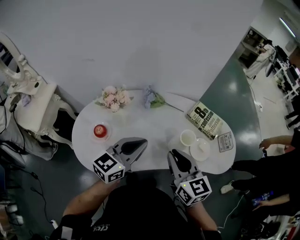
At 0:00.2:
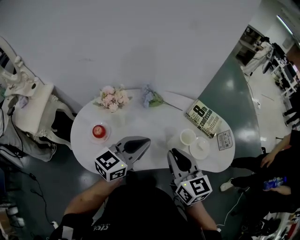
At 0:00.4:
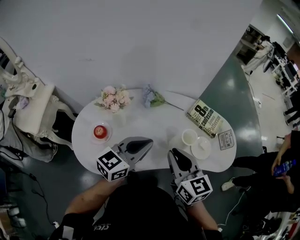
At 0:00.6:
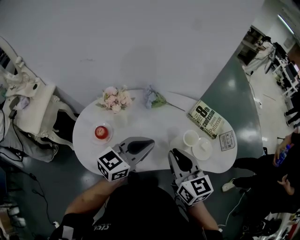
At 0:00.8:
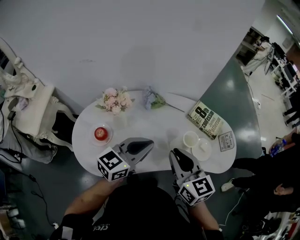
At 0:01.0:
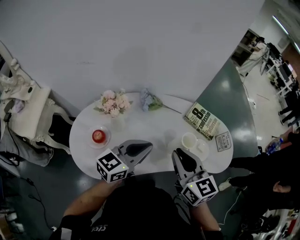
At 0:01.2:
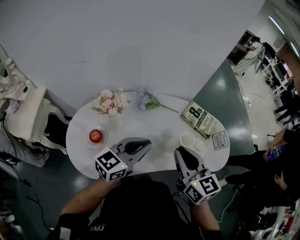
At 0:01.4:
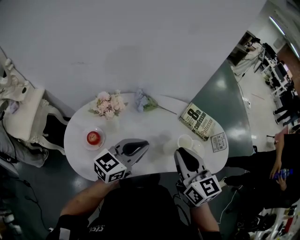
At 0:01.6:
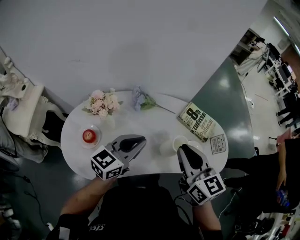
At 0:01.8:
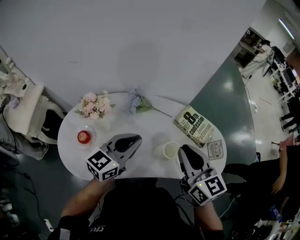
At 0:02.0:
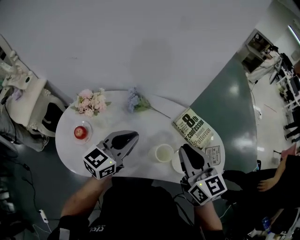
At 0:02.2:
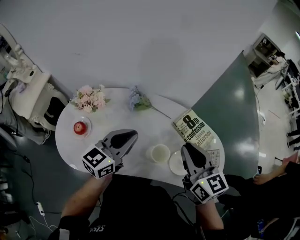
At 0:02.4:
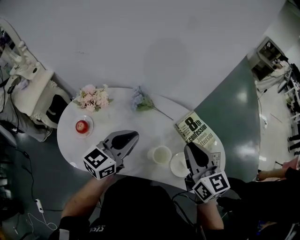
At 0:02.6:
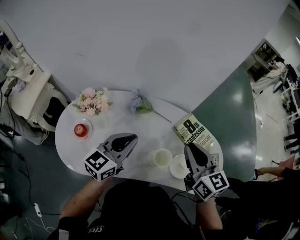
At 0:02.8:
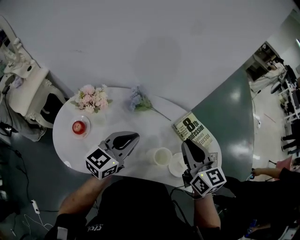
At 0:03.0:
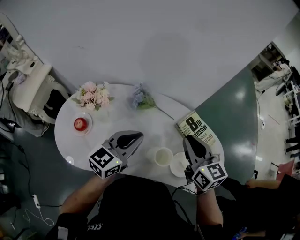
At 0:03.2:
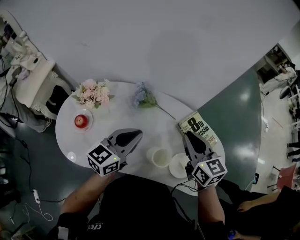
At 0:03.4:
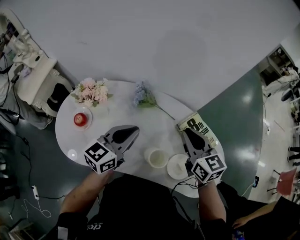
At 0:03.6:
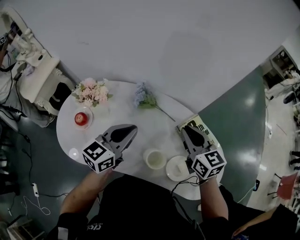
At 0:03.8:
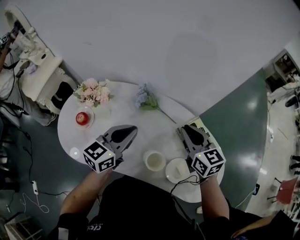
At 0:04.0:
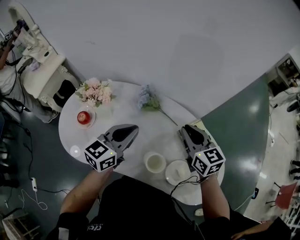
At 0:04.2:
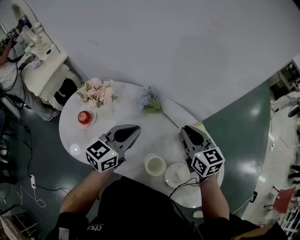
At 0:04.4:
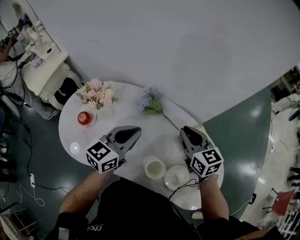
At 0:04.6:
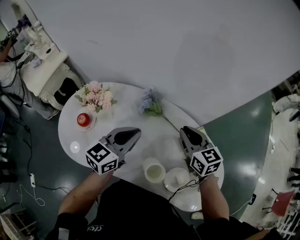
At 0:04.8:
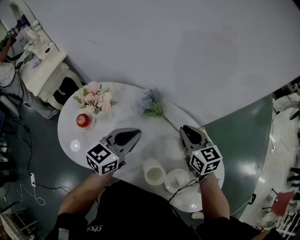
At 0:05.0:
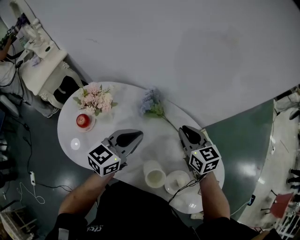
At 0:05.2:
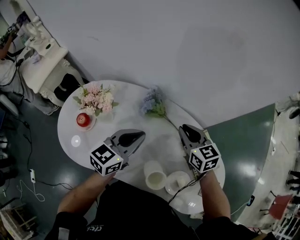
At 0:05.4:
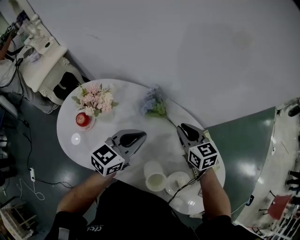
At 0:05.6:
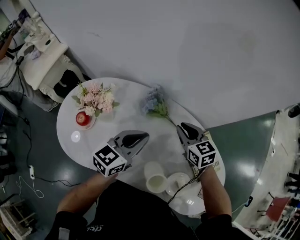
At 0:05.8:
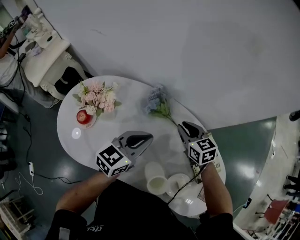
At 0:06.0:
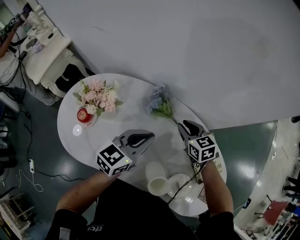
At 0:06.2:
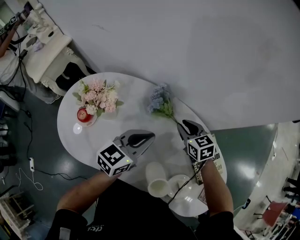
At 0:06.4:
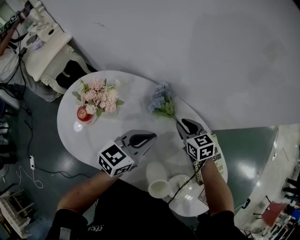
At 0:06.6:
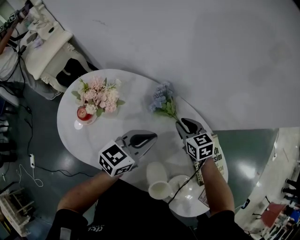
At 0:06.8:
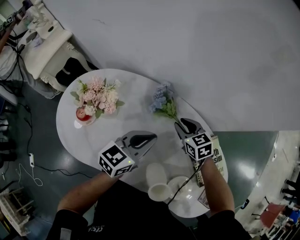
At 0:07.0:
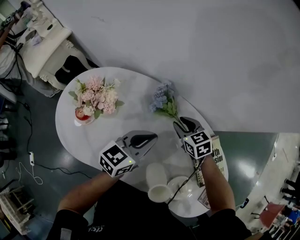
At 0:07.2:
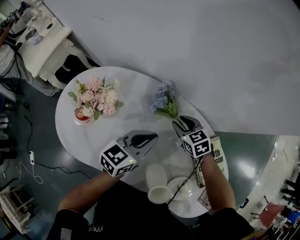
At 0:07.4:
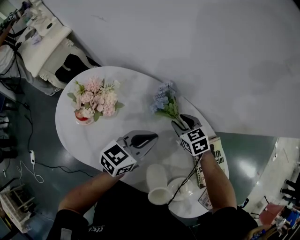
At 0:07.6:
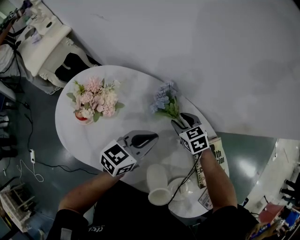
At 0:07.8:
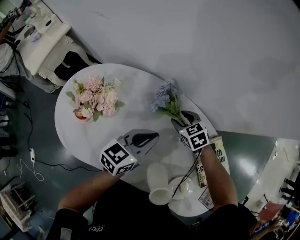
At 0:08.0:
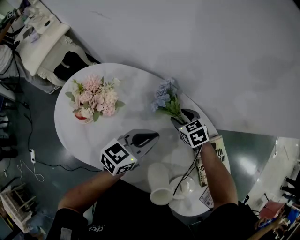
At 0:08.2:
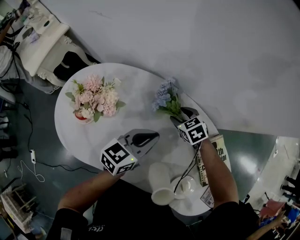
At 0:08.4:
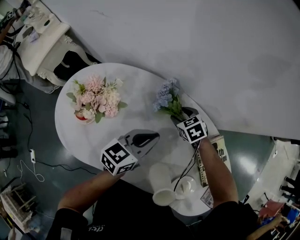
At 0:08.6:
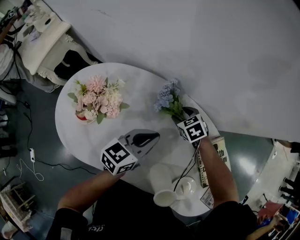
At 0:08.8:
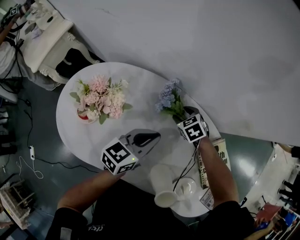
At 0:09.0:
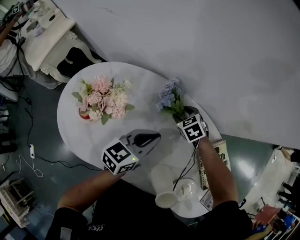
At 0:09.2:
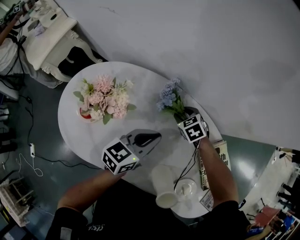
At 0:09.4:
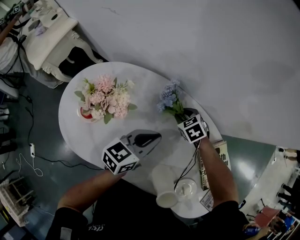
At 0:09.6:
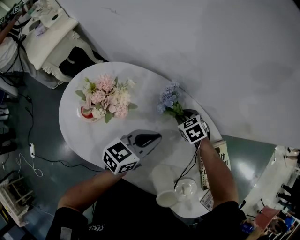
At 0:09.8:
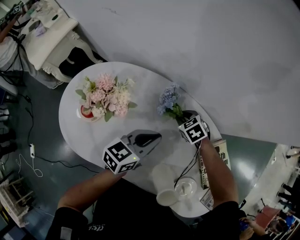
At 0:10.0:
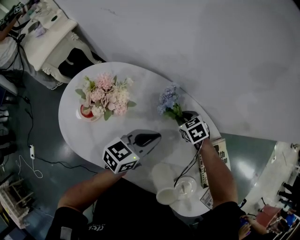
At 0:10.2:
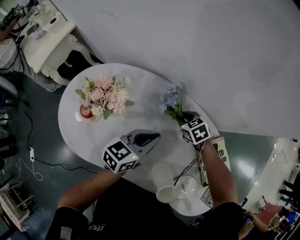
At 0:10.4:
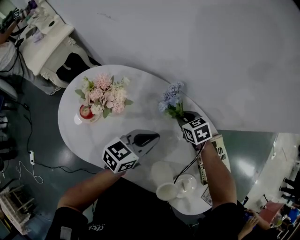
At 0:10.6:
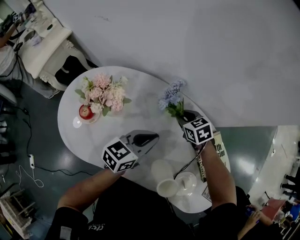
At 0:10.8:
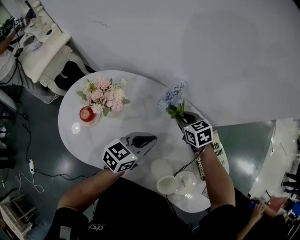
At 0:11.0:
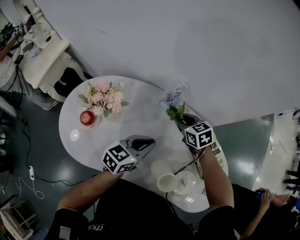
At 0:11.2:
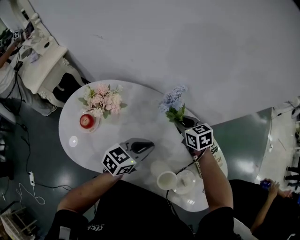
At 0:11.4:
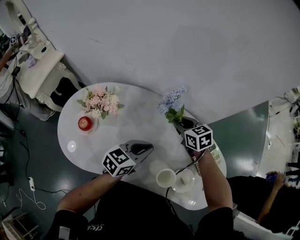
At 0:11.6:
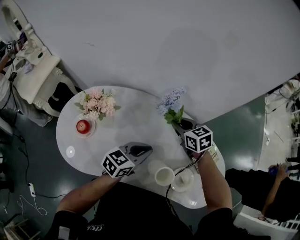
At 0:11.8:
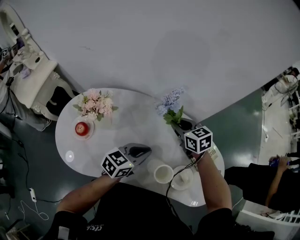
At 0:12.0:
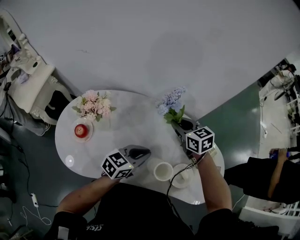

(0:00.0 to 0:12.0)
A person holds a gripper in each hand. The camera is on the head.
0:00.0 - 0:01.6: Both grippers move forward, some 5 cm.
0:01.6 - 0:03.0: The right gripper moves forward, to the right and downward, about 15 cm; the left gripper goes approximately 10 cm forward and to the right.
0:03.0 - 0:04.4: The right gripper goes about 10 cm forward and downward, while the left gripper goes about 5 cm forward.
0:04.4 - 0:06.0: The right gripper travels downward and forward by roughly 15 cm; the left gripper is displaced downward by roughly 5 cm.
0:06.0 - 0:07.6: The two grippers go approximately 10 cm downward.
0:07.6 - 0:09.0: The right gripper ends up about 5 cm from where it was.
0:09.0 - 0:10.4: The right gripper moves roughly 5 cm, and closes its fingers.
0:10.4 - 0:12.0: The right gripper heads upward and to the right, covering some 20 cm, and swivels approximately 30 degrees. Meanwhile the left gripper shifts roughly 10 cm backward, and rotates some 20 degrees.

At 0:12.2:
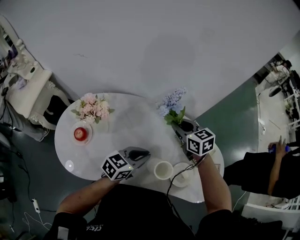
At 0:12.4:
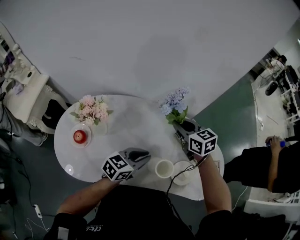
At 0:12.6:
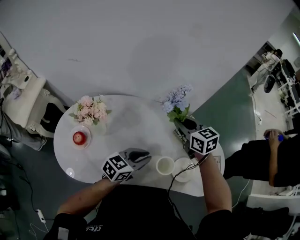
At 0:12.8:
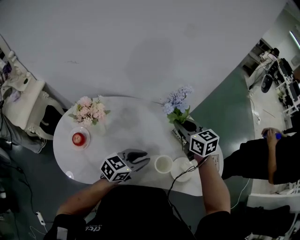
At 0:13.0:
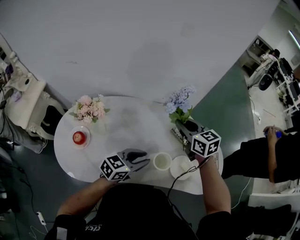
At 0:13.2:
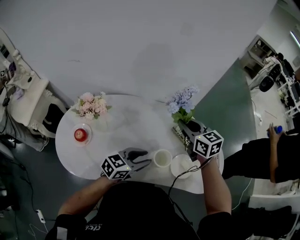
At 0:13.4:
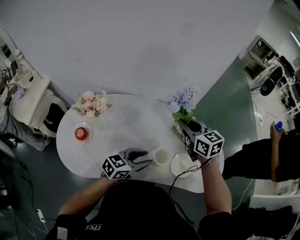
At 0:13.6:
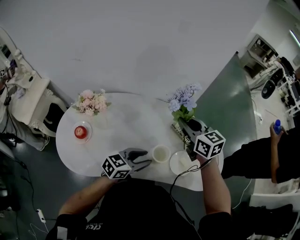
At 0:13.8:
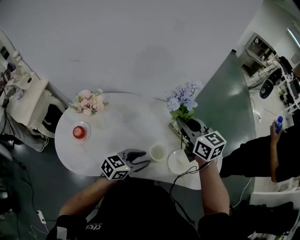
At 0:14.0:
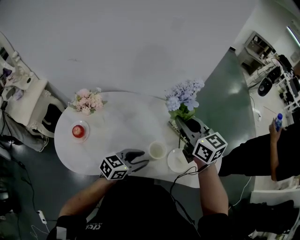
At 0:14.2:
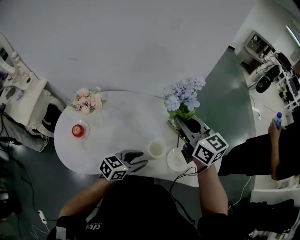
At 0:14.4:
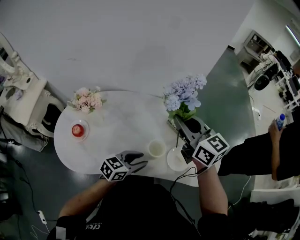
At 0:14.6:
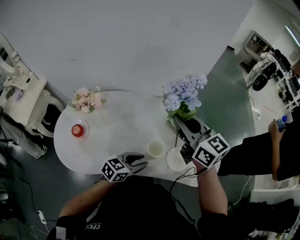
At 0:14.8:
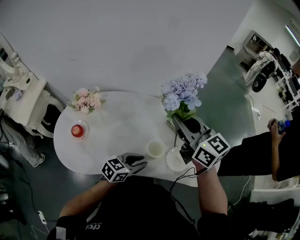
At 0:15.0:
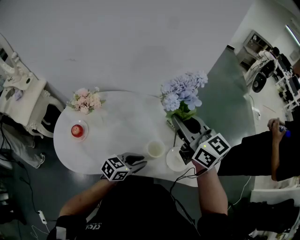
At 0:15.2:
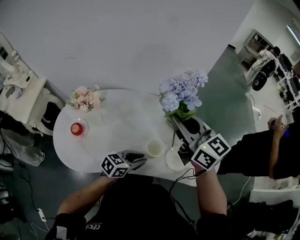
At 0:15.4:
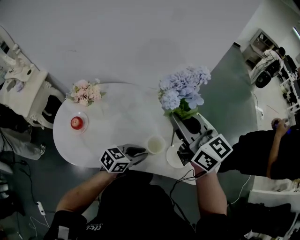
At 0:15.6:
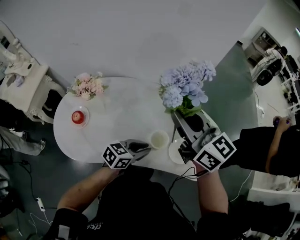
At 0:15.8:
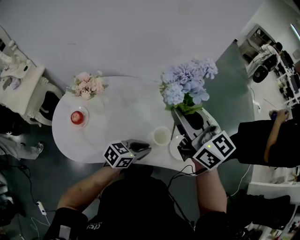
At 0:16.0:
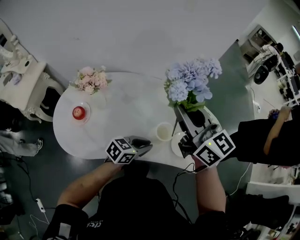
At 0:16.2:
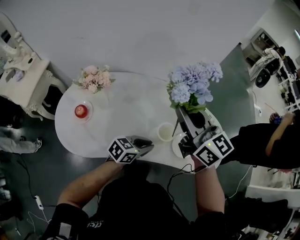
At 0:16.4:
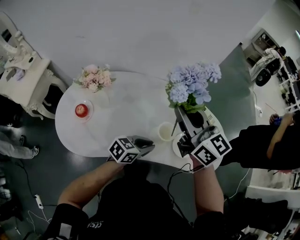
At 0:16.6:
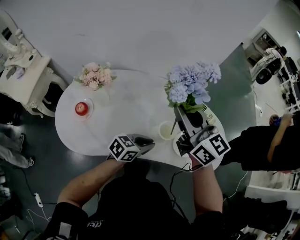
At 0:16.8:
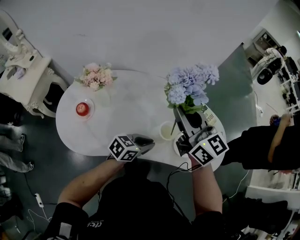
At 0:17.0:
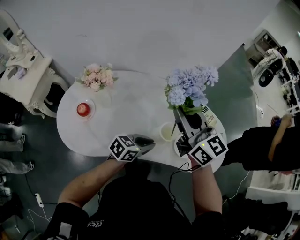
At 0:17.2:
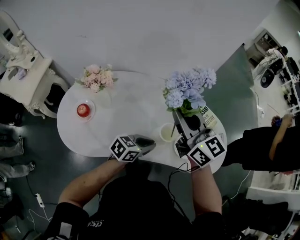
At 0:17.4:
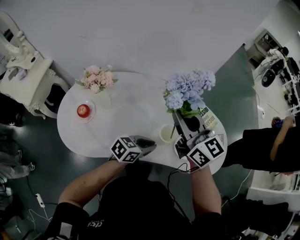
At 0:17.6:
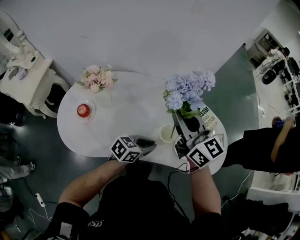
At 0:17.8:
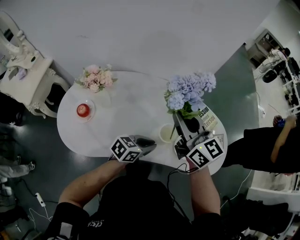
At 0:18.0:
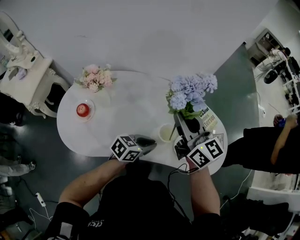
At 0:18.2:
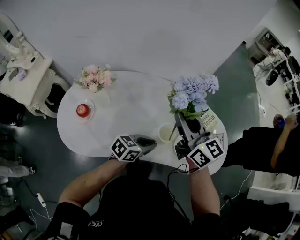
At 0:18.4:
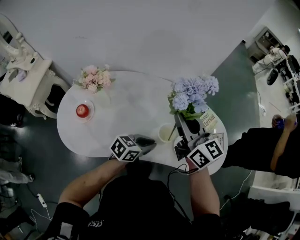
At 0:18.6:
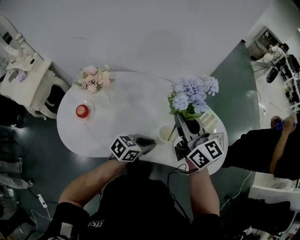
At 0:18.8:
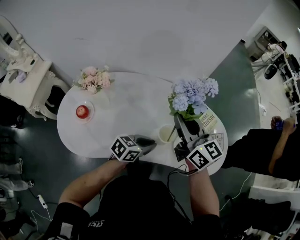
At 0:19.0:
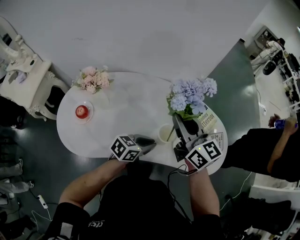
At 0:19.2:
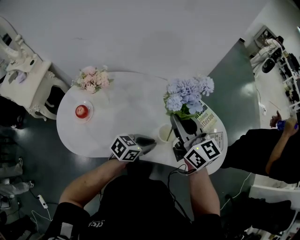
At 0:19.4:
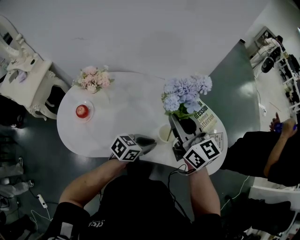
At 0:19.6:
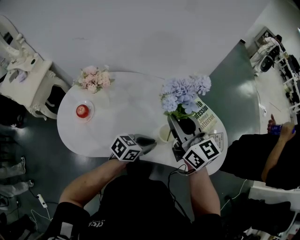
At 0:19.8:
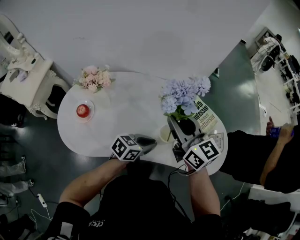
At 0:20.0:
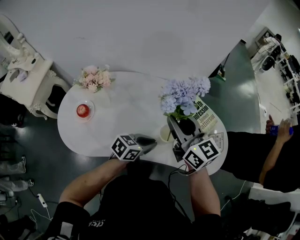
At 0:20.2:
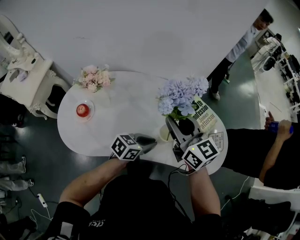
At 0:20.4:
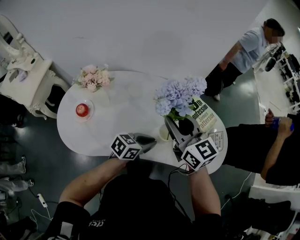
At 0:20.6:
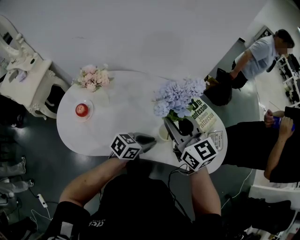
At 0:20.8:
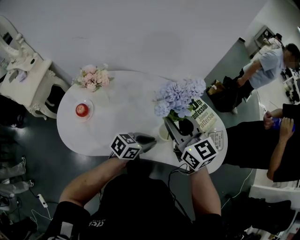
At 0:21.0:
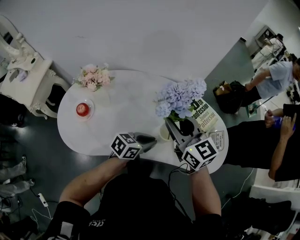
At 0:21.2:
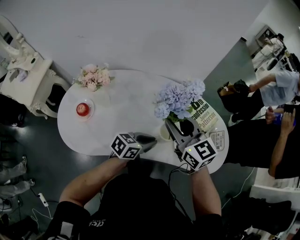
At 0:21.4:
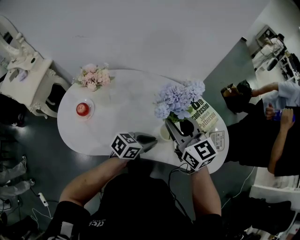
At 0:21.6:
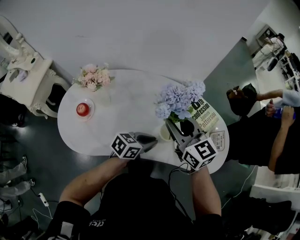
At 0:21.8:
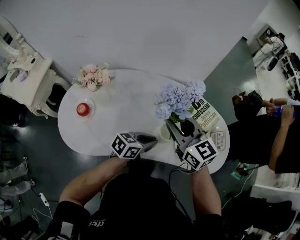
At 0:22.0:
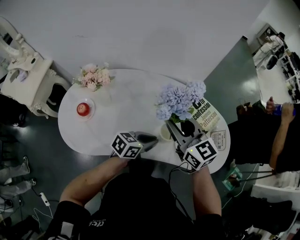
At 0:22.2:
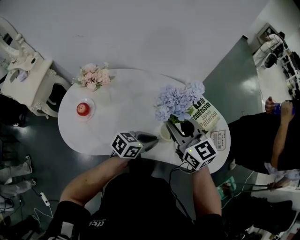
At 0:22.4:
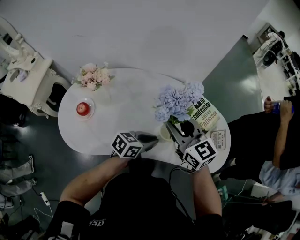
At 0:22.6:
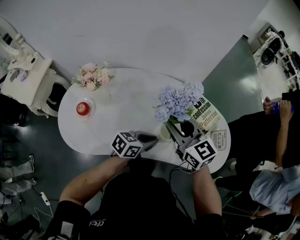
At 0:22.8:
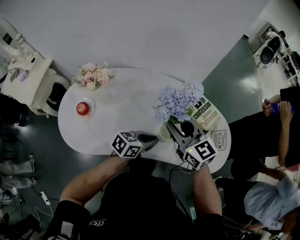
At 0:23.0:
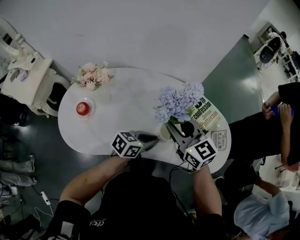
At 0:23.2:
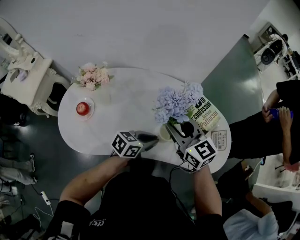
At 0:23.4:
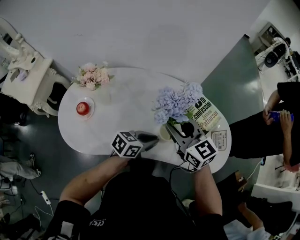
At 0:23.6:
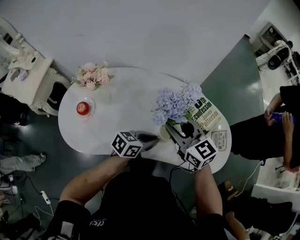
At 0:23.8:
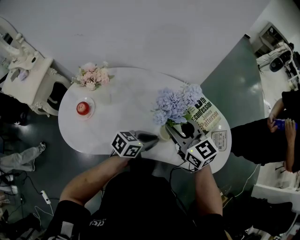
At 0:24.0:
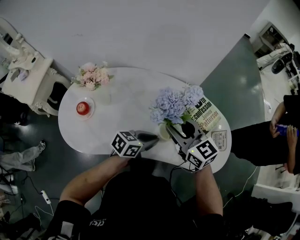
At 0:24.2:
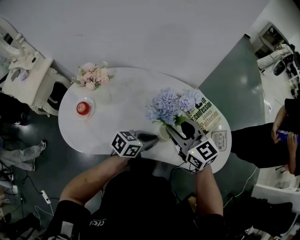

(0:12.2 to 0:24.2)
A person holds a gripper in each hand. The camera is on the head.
0:12.2 - 0:13.8: The left gripper goes some 10 cm backward, and opens. The right gripper shifts approximately 15 cm upward, backward and to the right.
0:13.8 - 0:15.2: The right gripper goes about 10 cm upward.
0:15.2 - 0:16.6: The grippers make only small movements.
0:16.6 - 0:18.2: The right gripper moves downward, some 5 cm.
0:18.2 - 0:21.2: The grippers stay close to where they were, moving slightly.
0:21.2 - 0:24.2: The grippers make only small movements.
